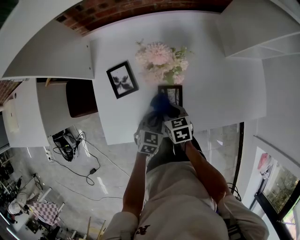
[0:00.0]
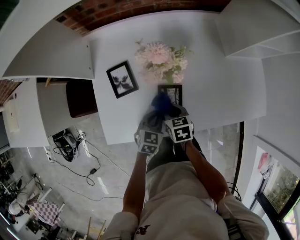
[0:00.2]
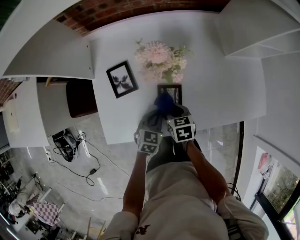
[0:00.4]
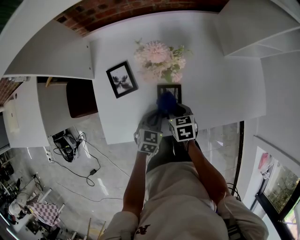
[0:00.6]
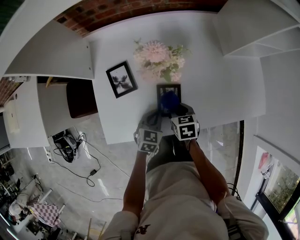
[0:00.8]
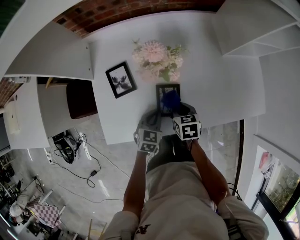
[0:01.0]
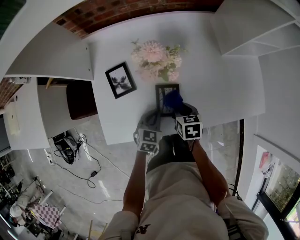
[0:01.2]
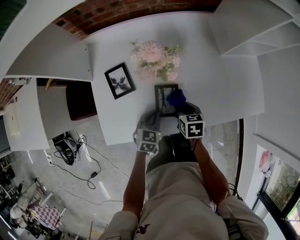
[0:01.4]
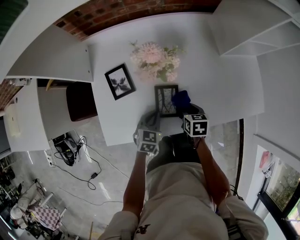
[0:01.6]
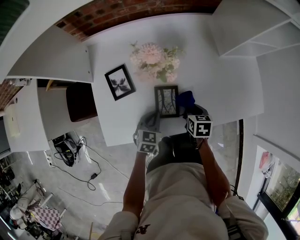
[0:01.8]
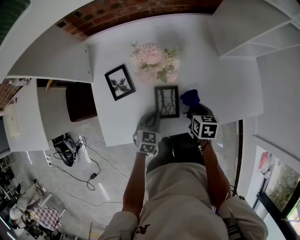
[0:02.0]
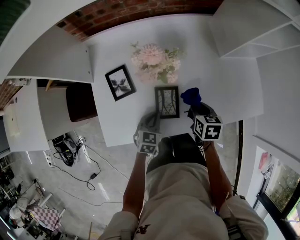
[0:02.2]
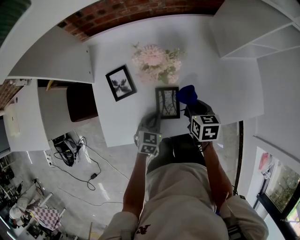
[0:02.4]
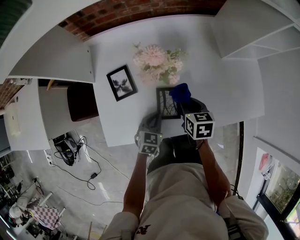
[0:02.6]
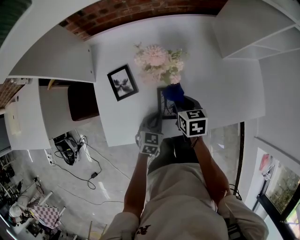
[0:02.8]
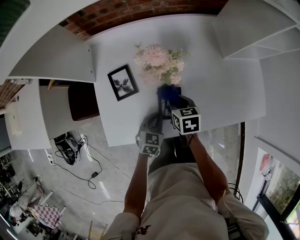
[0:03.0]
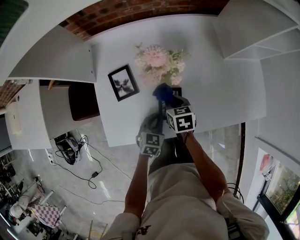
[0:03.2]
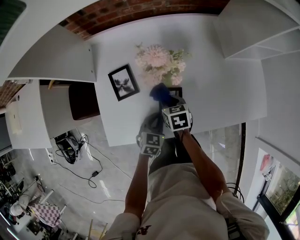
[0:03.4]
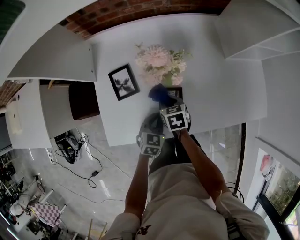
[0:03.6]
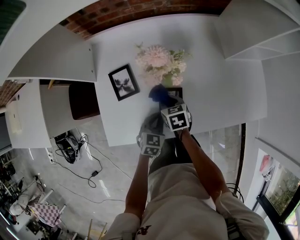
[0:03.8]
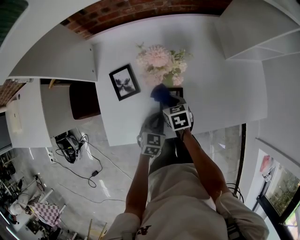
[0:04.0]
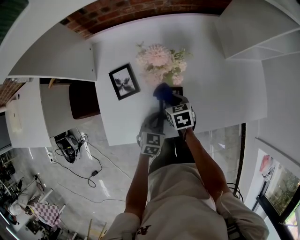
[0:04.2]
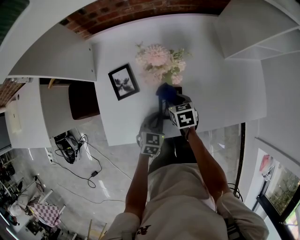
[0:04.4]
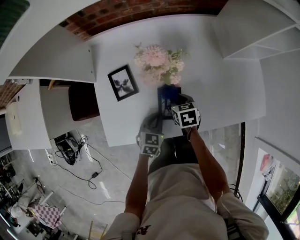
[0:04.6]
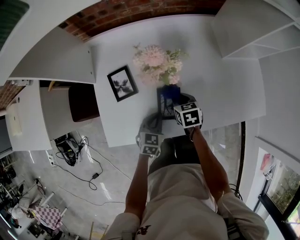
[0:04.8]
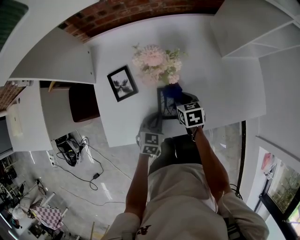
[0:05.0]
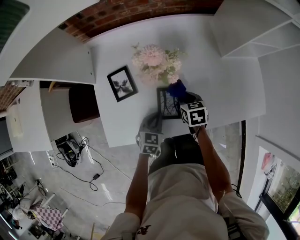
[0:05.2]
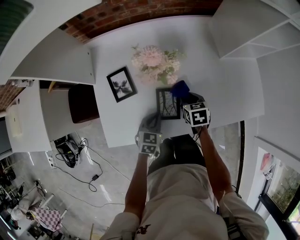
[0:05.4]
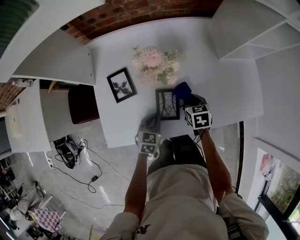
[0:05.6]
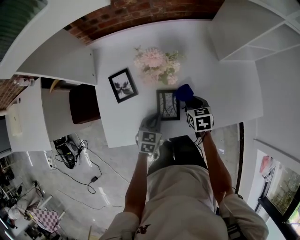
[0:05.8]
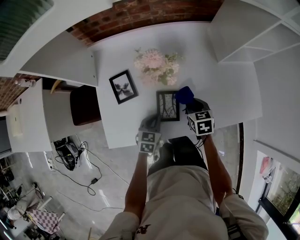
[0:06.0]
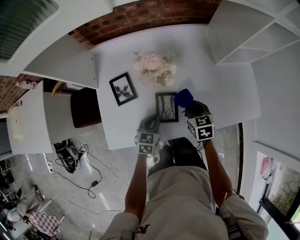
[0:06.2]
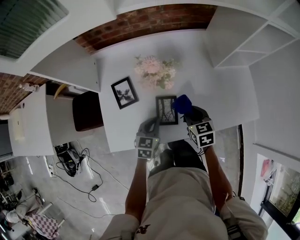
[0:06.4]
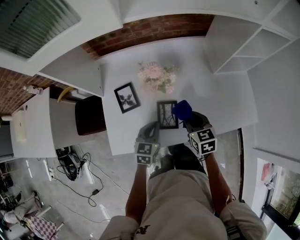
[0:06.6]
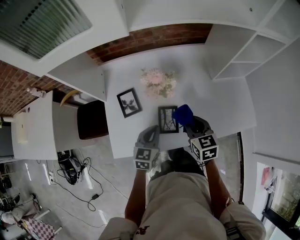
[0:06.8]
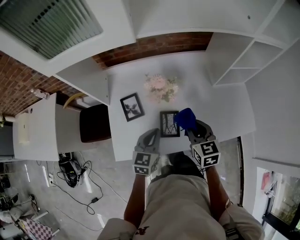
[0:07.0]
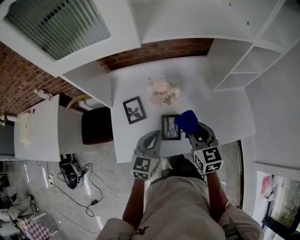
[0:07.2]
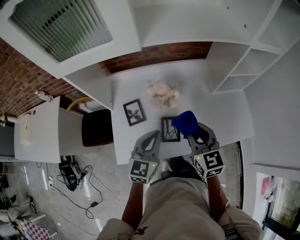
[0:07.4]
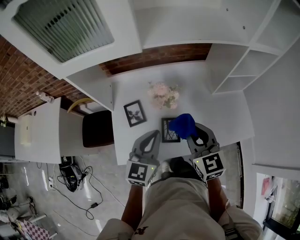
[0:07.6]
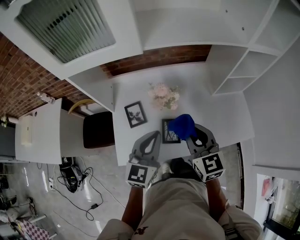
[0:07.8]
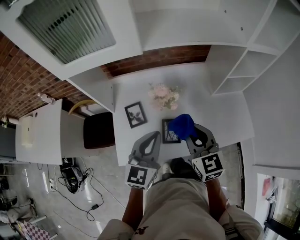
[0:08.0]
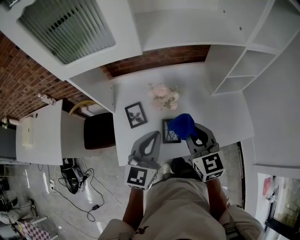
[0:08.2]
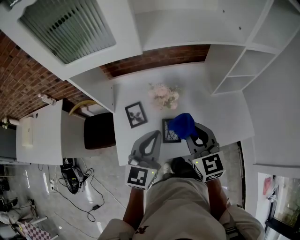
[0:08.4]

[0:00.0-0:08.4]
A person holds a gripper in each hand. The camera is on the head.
0:00.0 to 0:01.4: The right gripper moves to the right, roughly 10 cm.
0:01.4 to 0:02.8: The right gripper ends up some 5 cm from where it was.
0:02.8 to 0:04.2: The right gripper is displaced downward by roughly 5 cm.
0:04.2 to 0:05.6: The right gripper is displaced to the right by some 10 cm.
0:05.6 to 0:07.0: The grippers both shift upward by about 20 cm. The right gripper rotates some 20 degrees.
0:07.0 to 0:08.4: Both grippers move upward, roughly 15 cm.

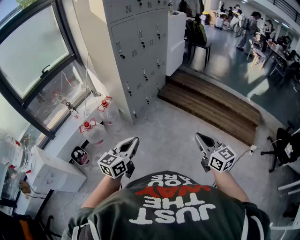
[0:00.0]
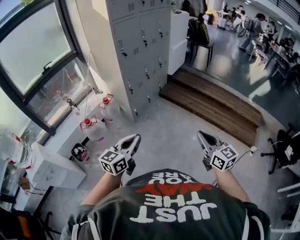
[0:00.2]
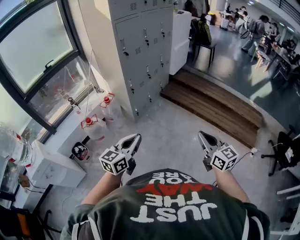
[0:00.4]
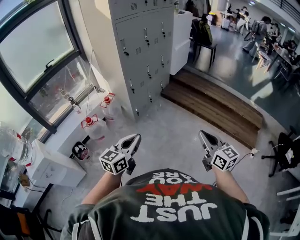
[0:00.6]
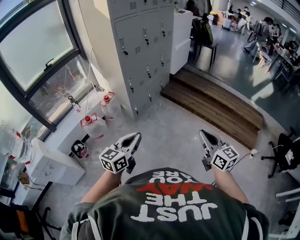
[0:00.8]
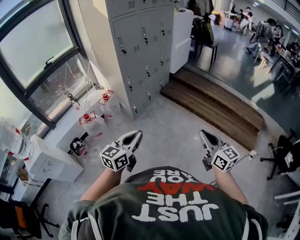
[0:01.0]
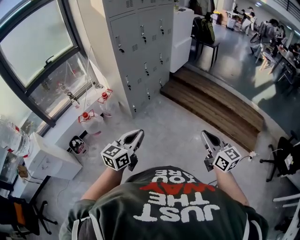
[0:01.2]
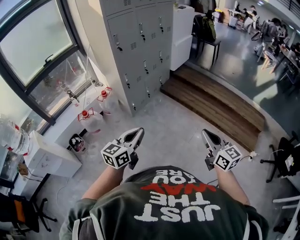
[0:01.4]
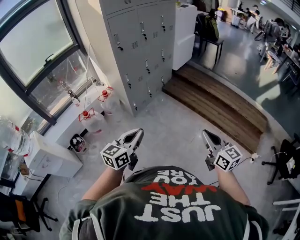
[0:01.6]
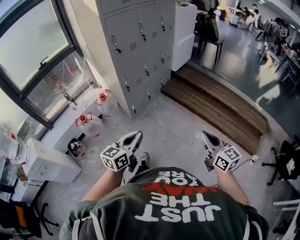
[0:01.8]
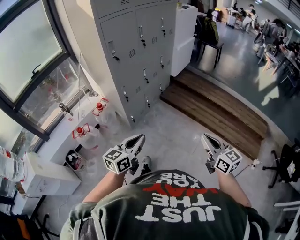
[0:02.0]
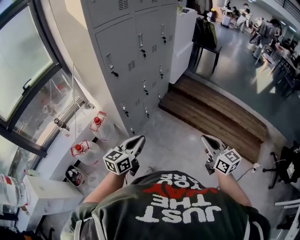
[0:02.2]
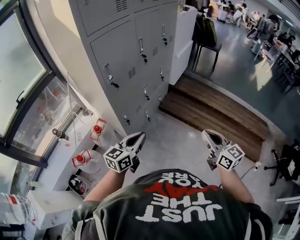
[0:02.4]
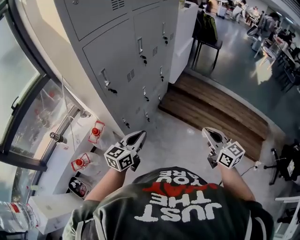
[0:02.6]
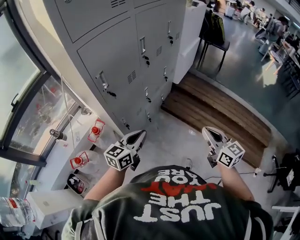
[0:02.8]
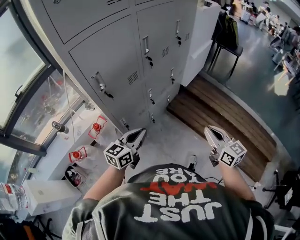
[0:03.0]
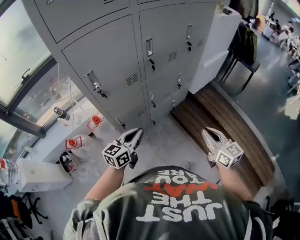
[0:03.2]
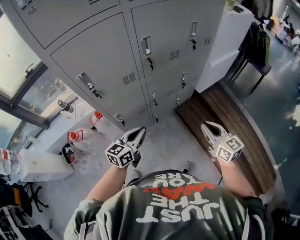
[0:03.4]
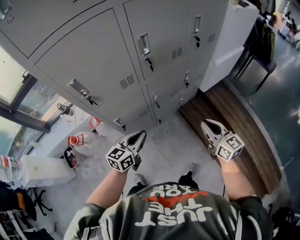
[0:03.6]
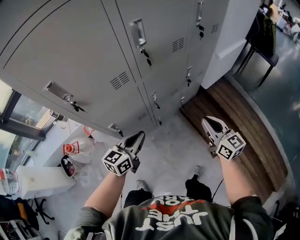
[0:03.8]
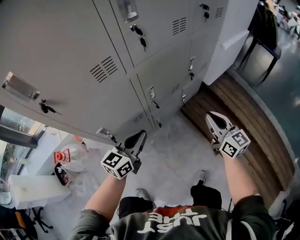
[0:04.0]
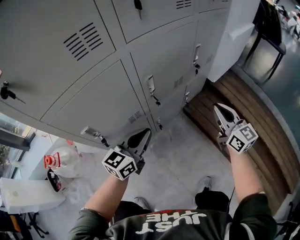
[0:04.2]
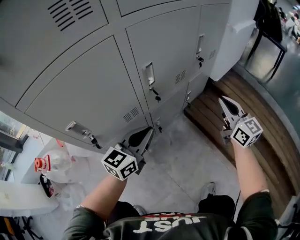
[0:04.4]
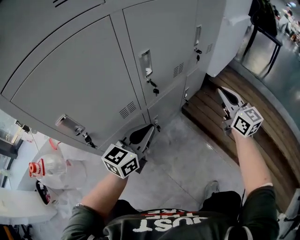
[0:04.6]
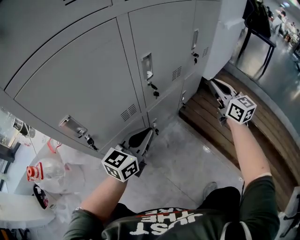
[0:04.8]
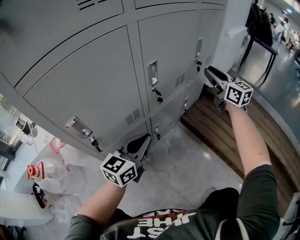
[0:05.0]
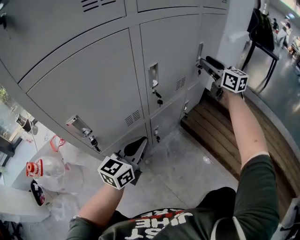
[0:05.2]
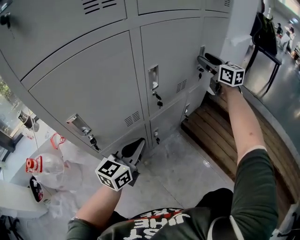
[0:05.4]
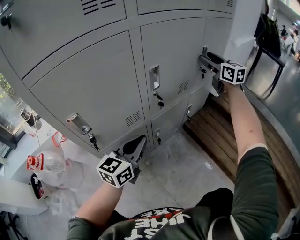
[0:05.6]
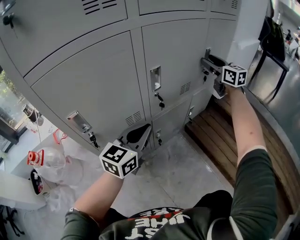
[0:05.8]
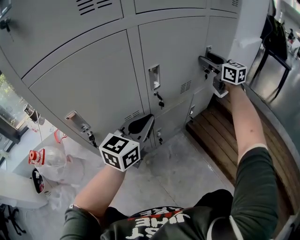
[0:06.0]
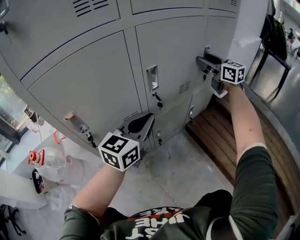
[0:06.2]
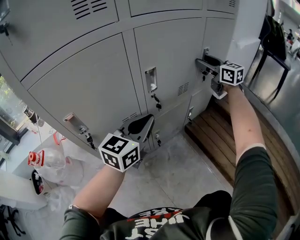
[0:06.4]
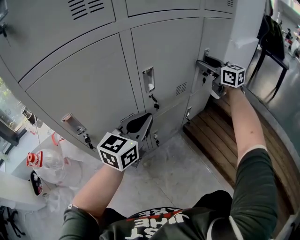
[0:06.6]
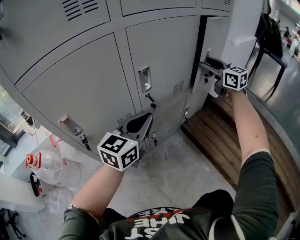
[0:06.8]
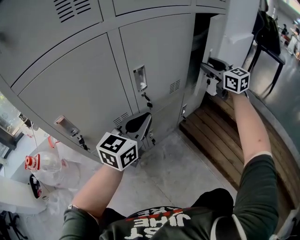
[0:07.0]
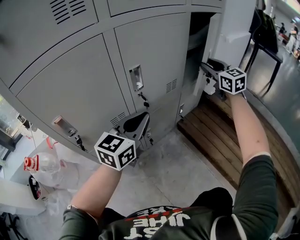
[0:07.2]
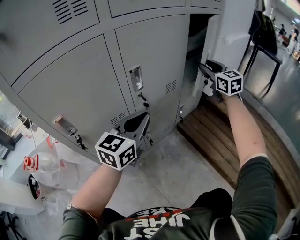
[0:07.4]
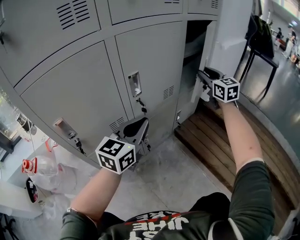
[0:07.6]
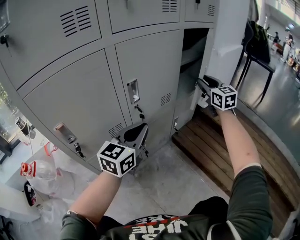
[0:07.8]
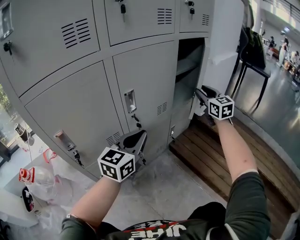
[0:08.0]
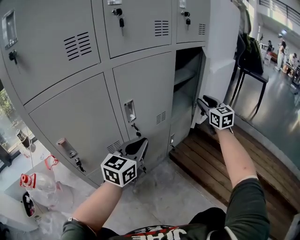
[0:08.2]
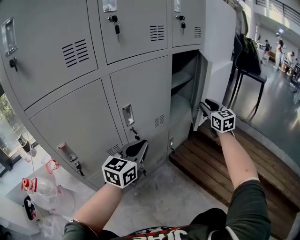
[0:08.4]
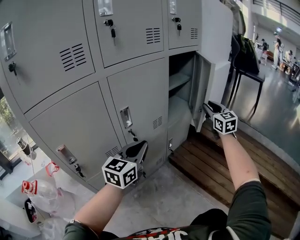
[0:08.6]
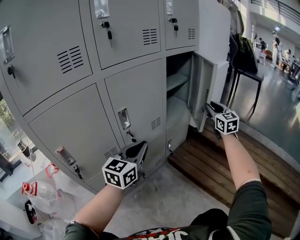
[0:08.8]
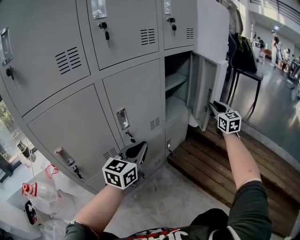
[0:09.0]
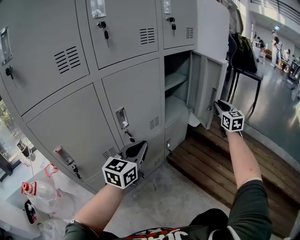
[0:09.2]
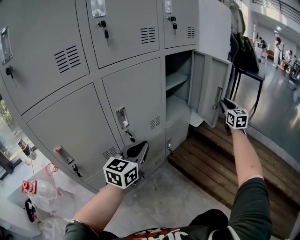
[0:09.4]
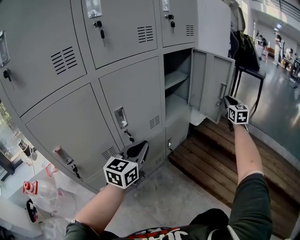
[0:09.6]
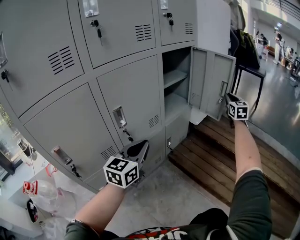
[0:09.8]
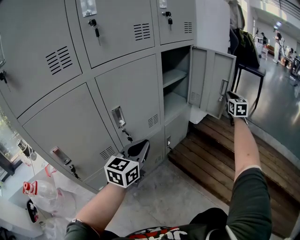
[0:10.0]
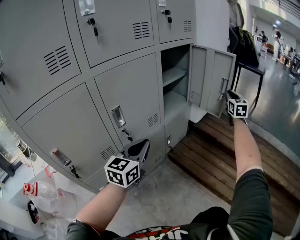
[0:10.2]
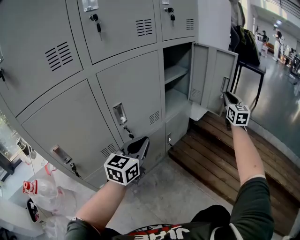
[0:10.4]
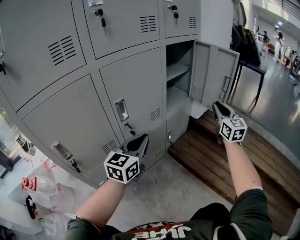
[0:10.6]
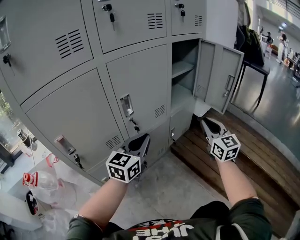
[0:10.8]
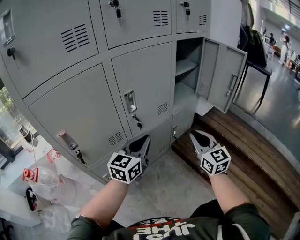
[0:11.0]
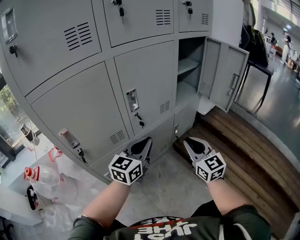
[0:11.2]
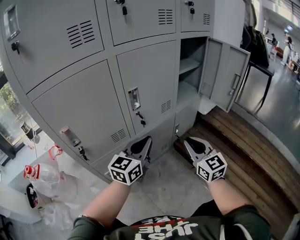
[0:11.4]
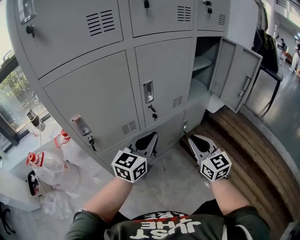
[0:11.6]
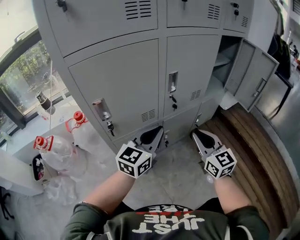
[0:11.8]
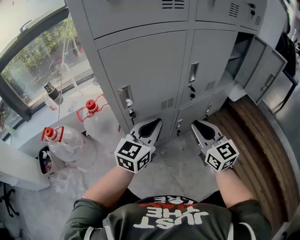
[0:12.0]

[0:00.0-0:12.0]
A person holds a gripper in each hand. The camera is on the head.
0:00.0 to 0:01.6: The grippers both shift to the right and forward by approximately 15 cm.
0:01.6 to 0:03.0: The two grippers travel together, forward, approximately 60 cm.
0:03.0 to 0:04.4: Both grippers move downward and forward, roughly 50 cm.
0:04.4 to 0:06.0: The left gripper ends up roughly 5 cm from where it was; the right gripper travels forward by roughly 25 cm, and opens its fingers.
0:06.0 to 0:07.6: The right gripper is displaced to the right by about 5 cm, and closes its fingers.
0:07.6 to 0:09.0: The left gripper changes place by roughly 5 cm. Meanwhile the right gripper heads to the right, covering about 15 cm.
0:09.0 to 0:10.4: The right gripper travels to the right by about 5 cm.
0:10.4 to 0:12.0: The left gripper changes place by some 25 cm; the right gripper shifts by roughly 60 cm, and turns by about 50 degrees.

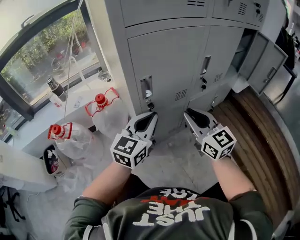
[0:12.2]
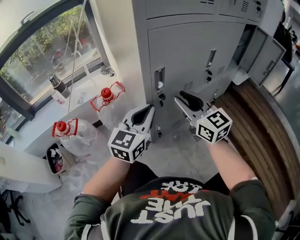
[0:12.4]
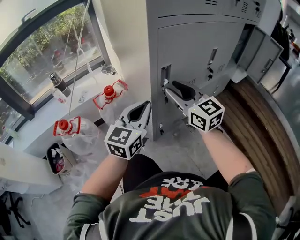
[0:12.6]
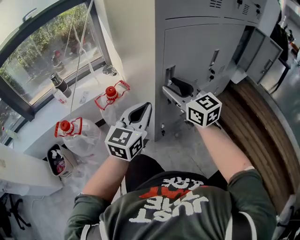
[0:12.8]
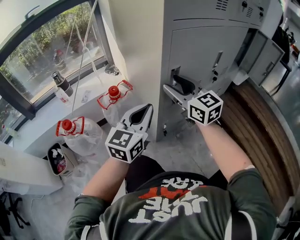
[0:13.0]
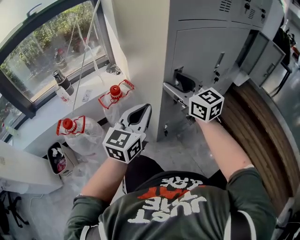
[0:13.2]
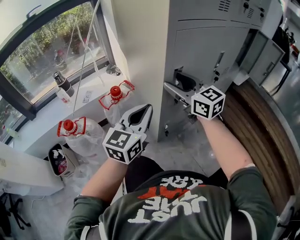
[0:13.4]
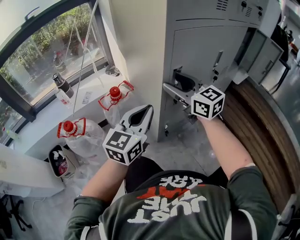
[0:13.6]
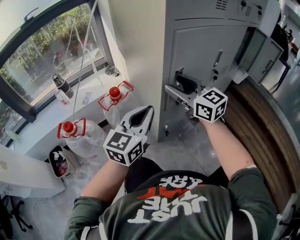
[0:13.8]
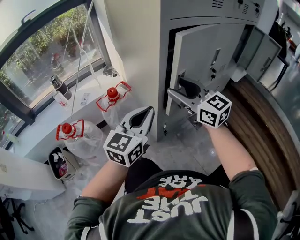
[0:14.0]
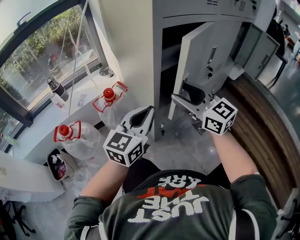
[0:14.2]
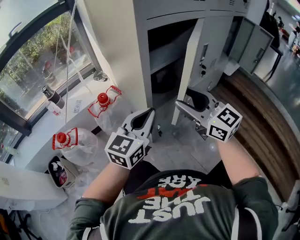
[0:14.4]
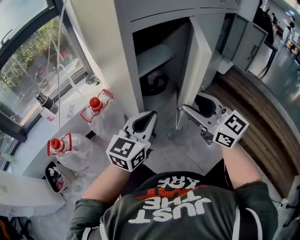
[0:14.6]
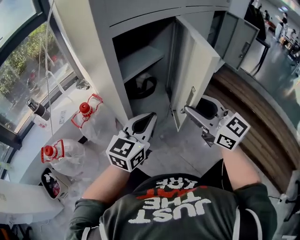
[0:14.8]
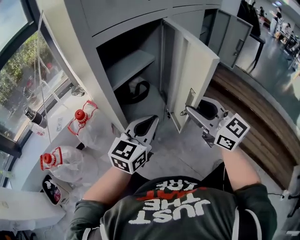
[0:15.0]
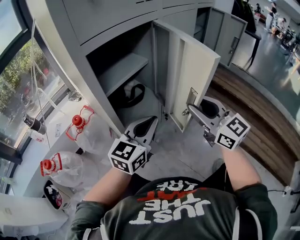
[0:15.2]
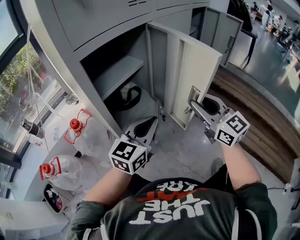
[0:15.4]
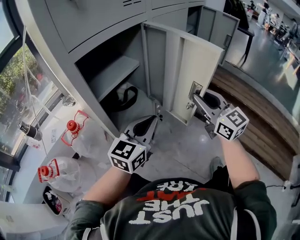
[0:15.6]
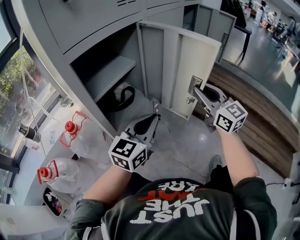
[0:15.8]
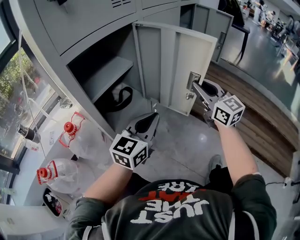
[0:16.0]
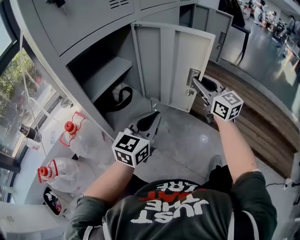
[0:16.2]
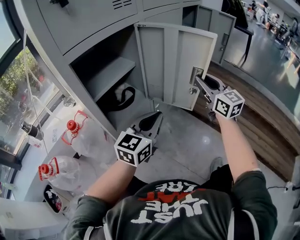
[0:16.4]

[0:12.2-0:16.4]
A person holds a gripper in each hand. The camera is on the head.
0:12.2 to 0:13.6: Both grippers move to the left, about 15 cm. The right gripper opens its fingers.
0:13.6 to 0:15.0: The left gripper moves to the right, some 20 cm. The right gripper moves to the right and backward, about 25 cm, and closes.
0:15.0 to 0:16.4: The left gripper is displaced to the right by roughly 10 cm; the right gripper moves to the right and forward, some 20 cm, and changes its angle by roughly 20 degrees.
